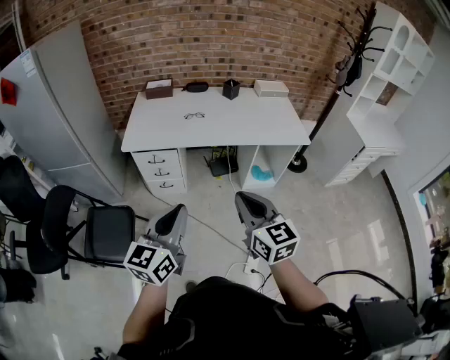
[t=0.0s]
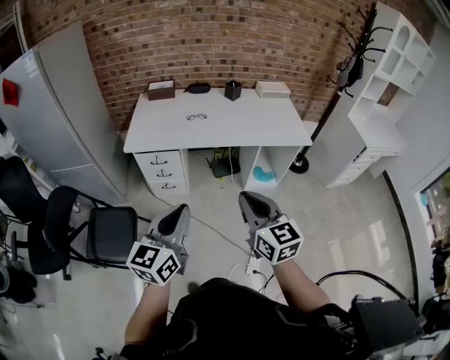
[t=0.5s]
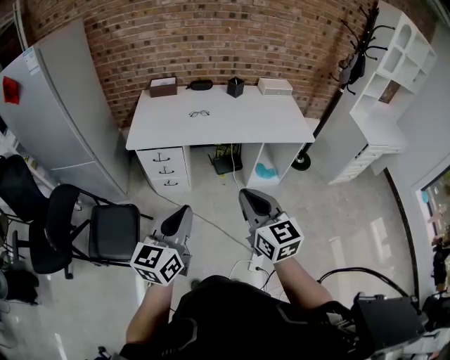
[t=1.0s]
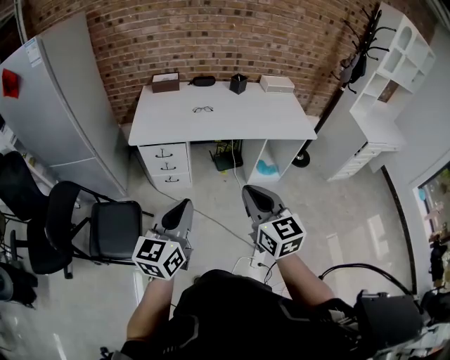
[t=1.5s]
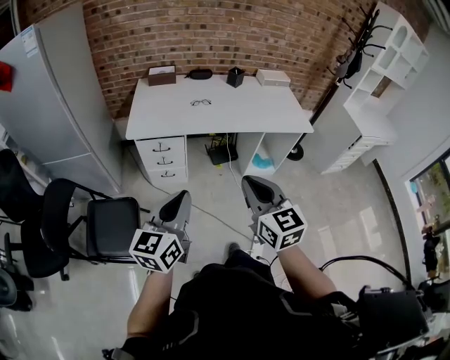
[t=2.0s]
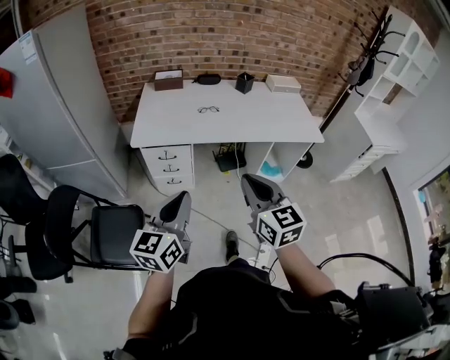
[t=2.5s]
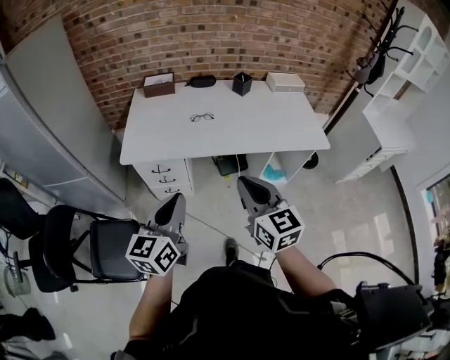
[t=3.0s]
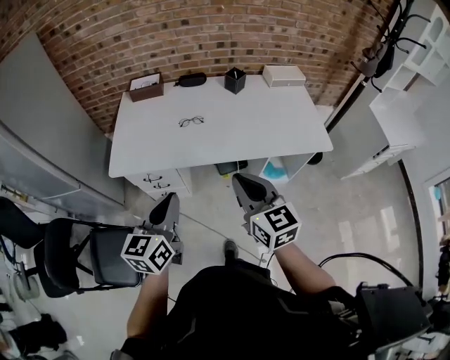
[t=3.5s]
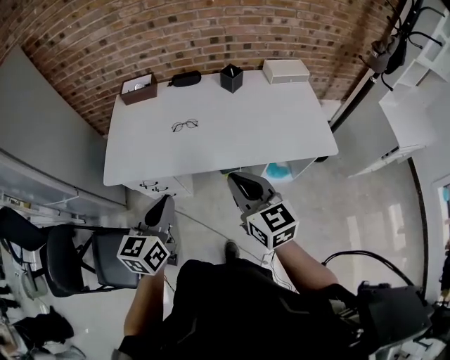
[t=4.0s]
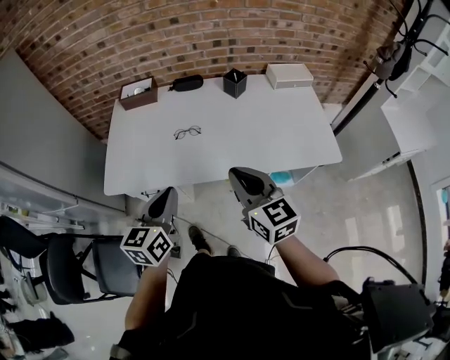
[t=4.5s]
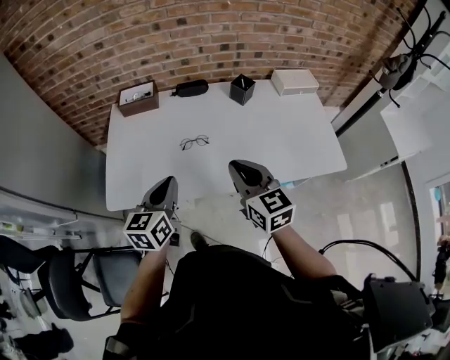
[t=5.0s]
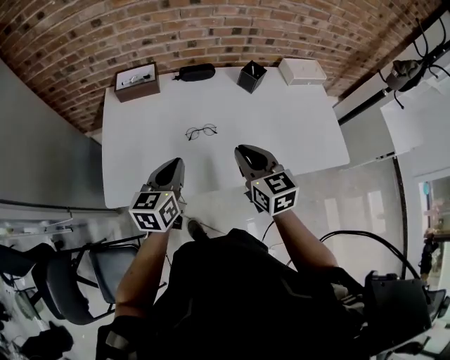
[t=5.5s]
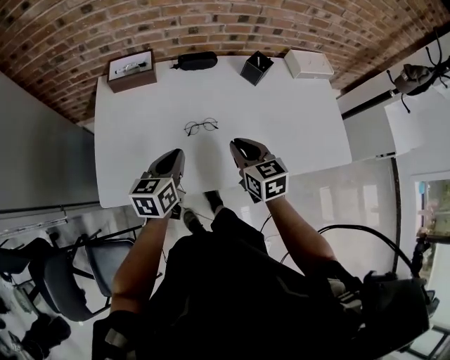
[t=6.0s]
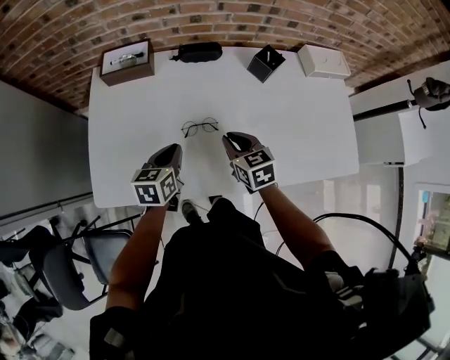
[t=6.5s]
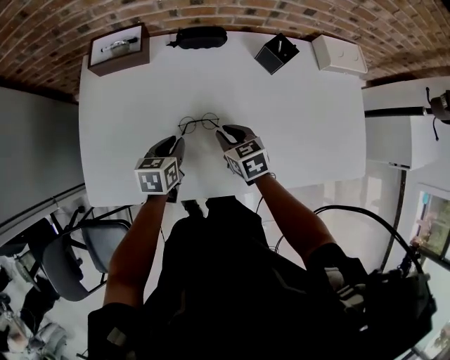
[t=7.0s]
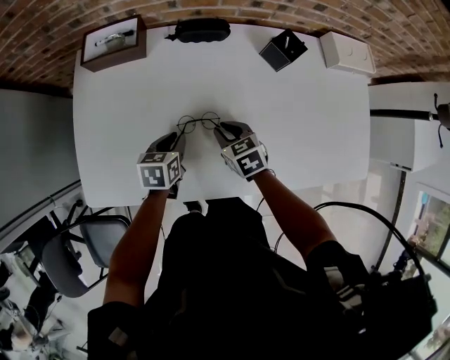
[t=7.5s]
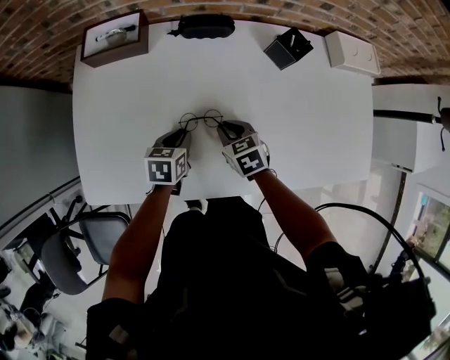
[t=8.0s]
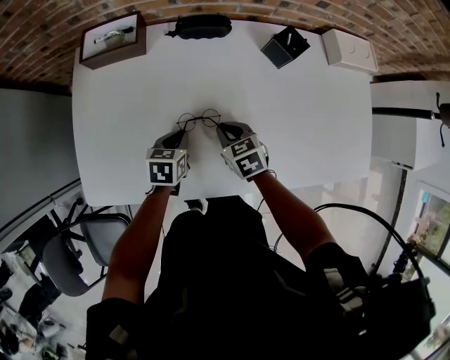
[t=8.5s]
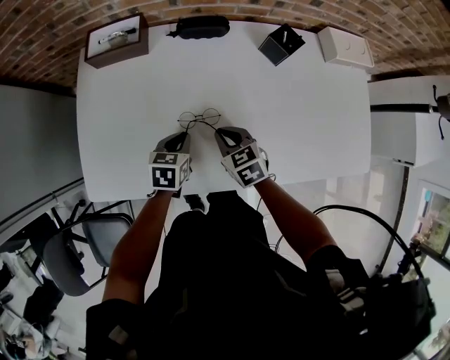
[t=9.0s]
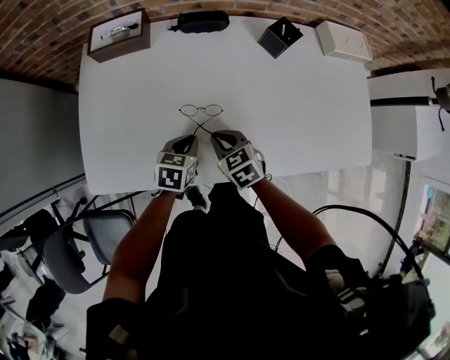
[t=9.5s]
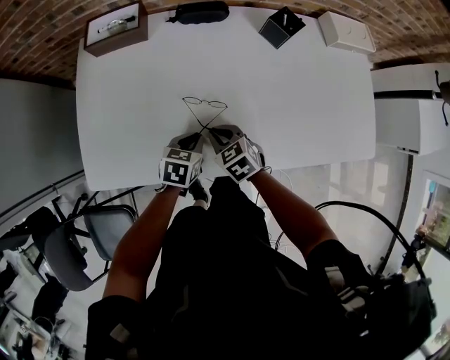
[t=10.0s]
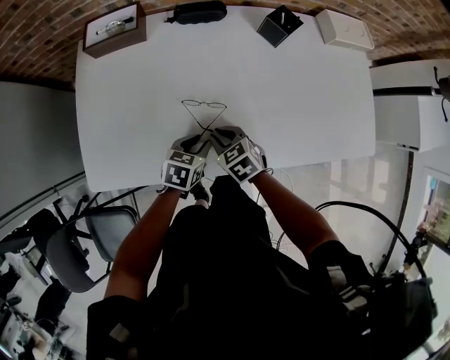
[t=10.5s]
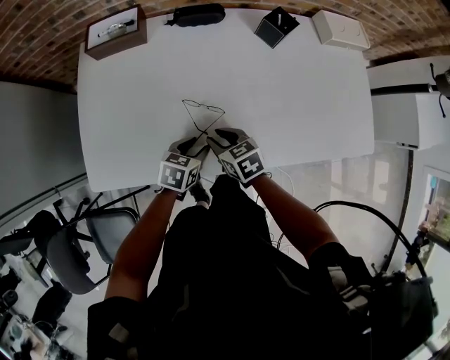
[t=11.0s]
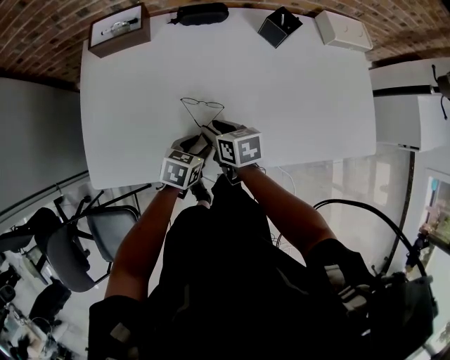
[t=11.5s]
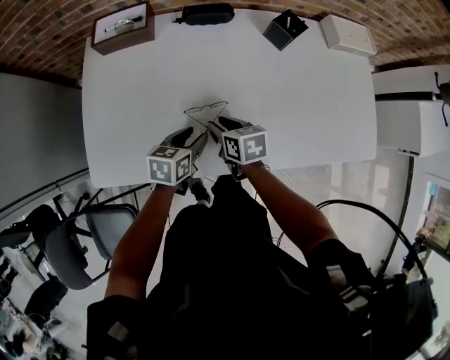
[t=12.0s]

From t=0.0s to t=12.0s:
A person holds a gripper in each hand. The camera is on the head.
From t=0.0s to t=2.0s: Both grippers travel together to the left, approximately 10 cm.
From t=2.0s to t=4.0s: The right gripper goes approximately 40 cm forward and to the right, while the left gripper is displaced forward by roughly 35 cm.
From t=4.0s to t=6.0s: The grippers both shift forward and downward by some 30 cm. The right gripper changes its angle by some 20 degrees.
From t=6.0s to t=8.0s: Both grippers move downward and forward, approximately 20 cm. The right gripper changes its angle by roughly 20 degrees, while the left gripper changes its angle by about 30 degrees.
From t=8.0s to t=10.0s: The grippers both shift backward by some 10 cm.
From t=10.0s to t=12.0s: The left gripper opens. The right gripper rotates roughly 30 degrees, and opens.

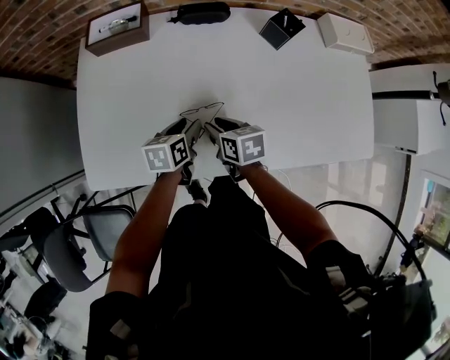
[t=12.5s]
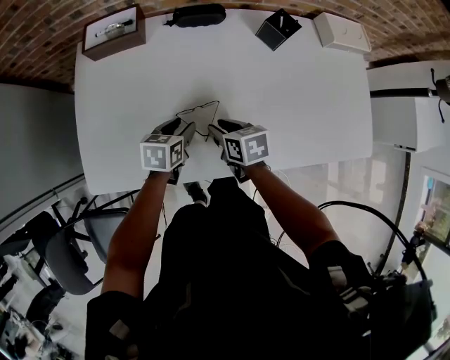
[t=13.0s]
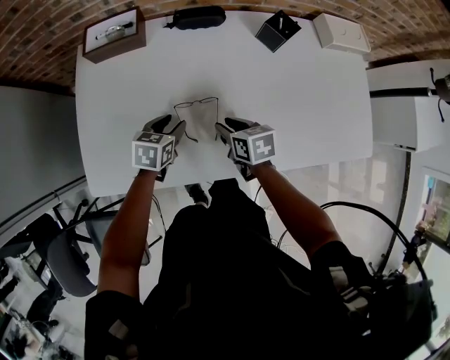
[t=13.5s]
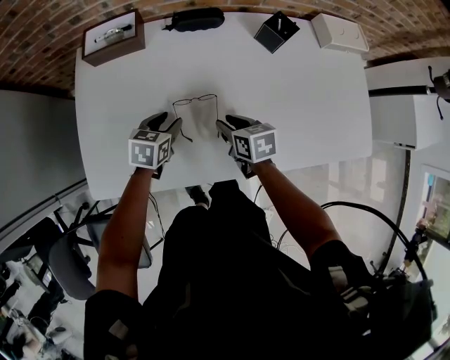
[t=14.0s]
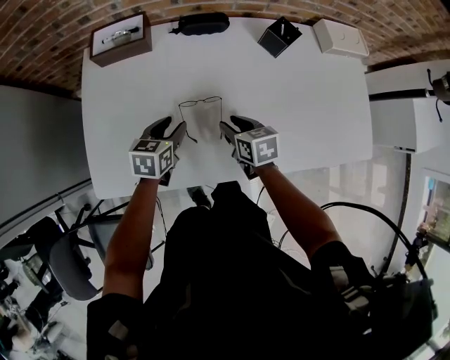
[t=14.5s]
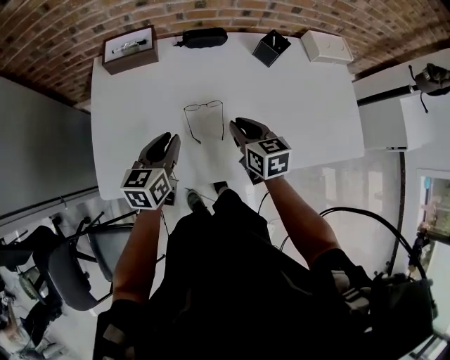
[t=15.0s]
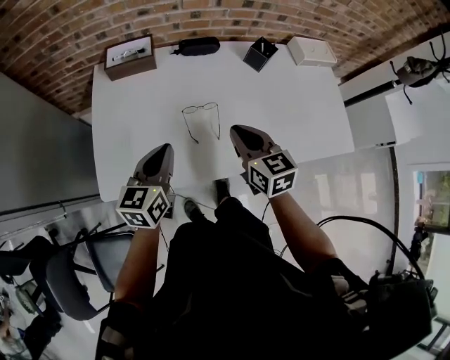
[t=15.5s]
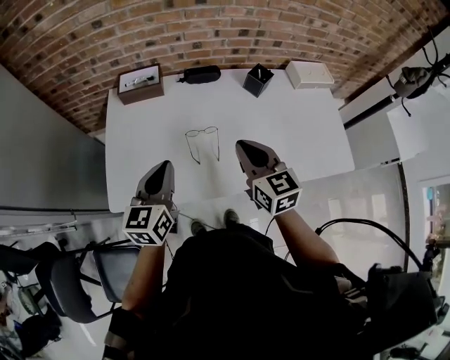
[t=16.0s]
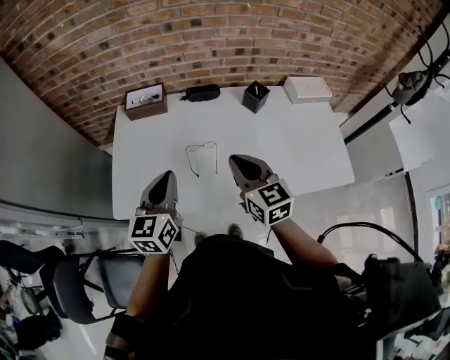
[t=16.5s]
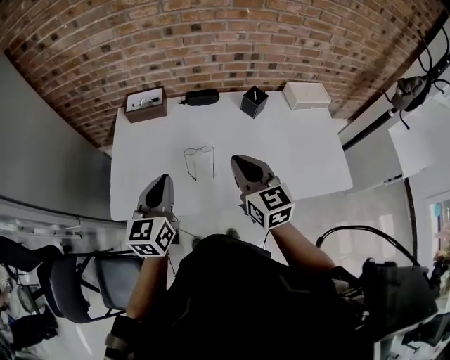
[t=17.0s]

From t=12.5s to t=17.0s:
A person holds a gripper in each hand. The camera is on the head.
From t=12.5s to t=14.5s: The left gripper changes place by about 5 cm.
From t=14.5s to t=17.0s: The left gripper is displaced upward and backward by roughly 30 cm, swivels approximately 40 degrees, and closes its fingers. The right gripper shifts roughly 30 cm upward, tilts its fingers some 30 degrees upward, and closes up.

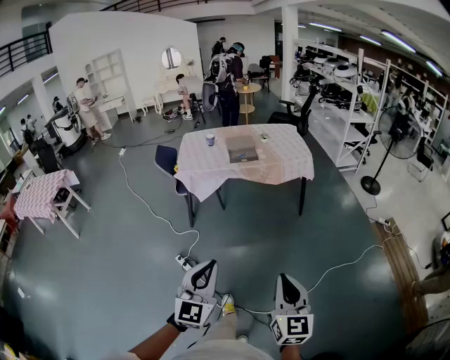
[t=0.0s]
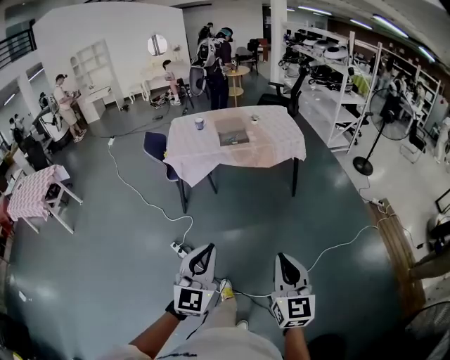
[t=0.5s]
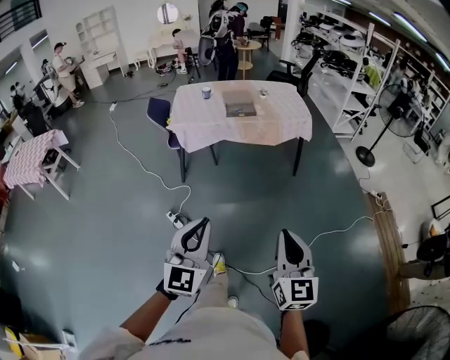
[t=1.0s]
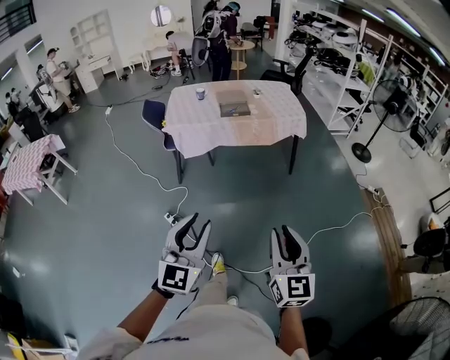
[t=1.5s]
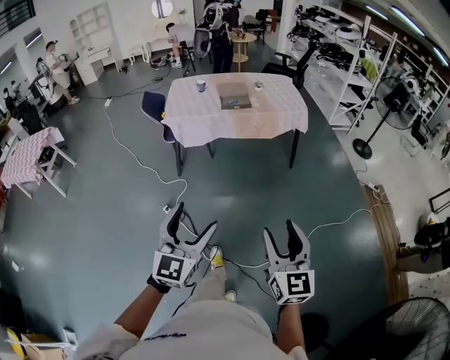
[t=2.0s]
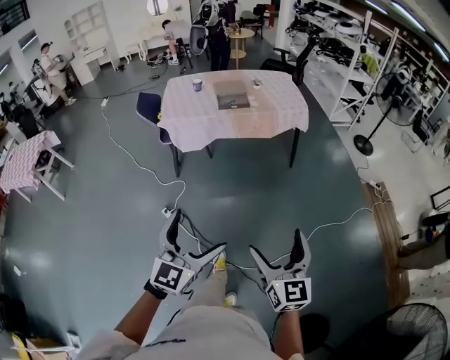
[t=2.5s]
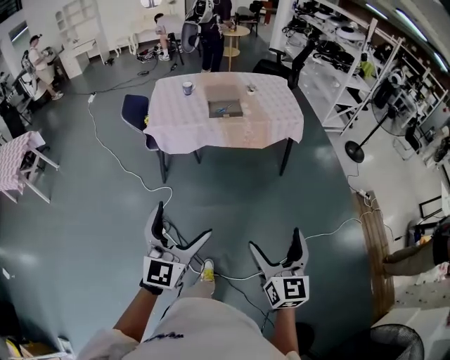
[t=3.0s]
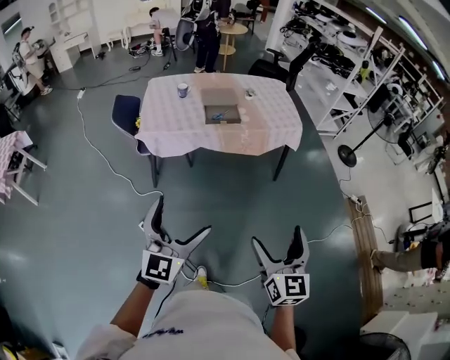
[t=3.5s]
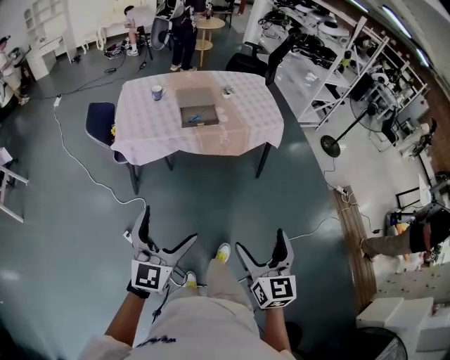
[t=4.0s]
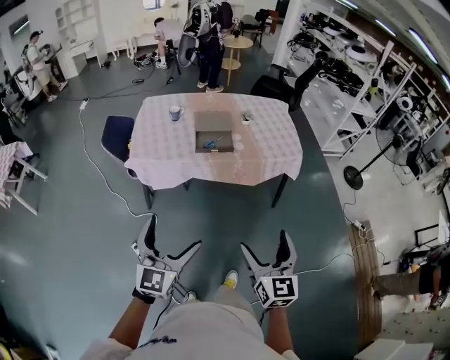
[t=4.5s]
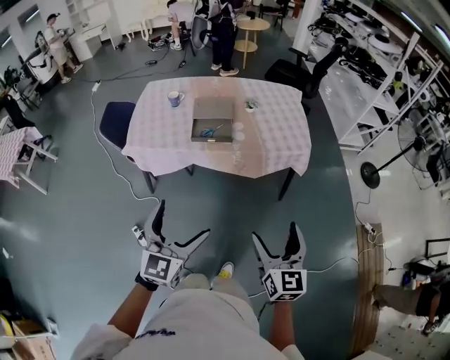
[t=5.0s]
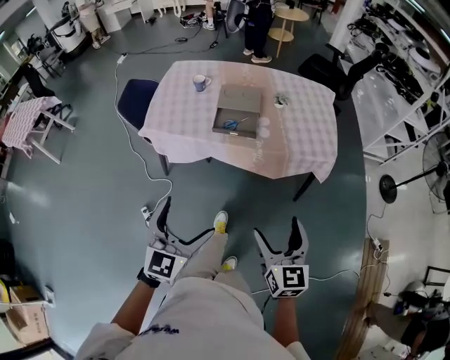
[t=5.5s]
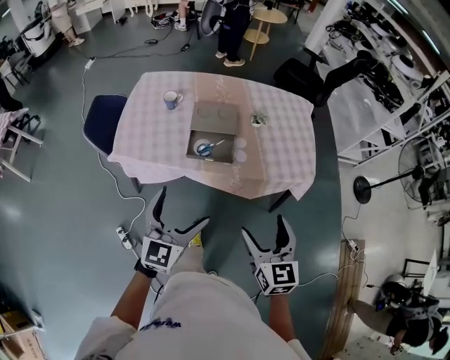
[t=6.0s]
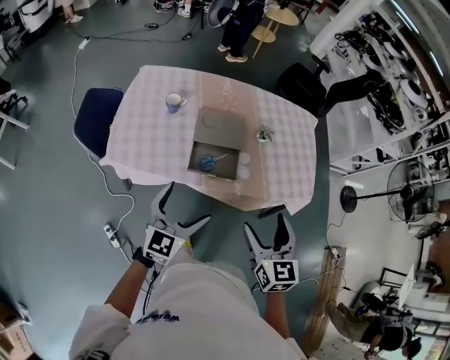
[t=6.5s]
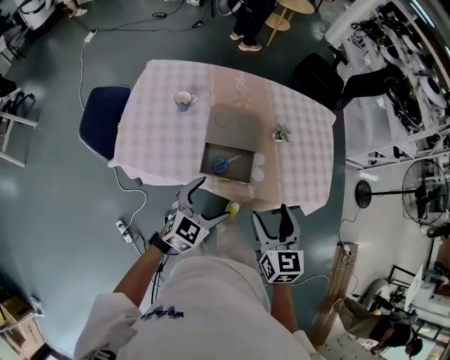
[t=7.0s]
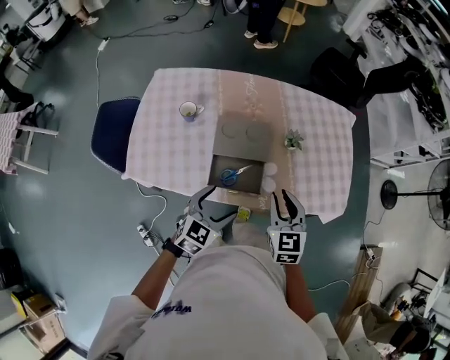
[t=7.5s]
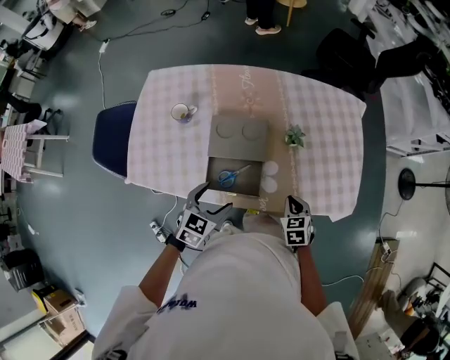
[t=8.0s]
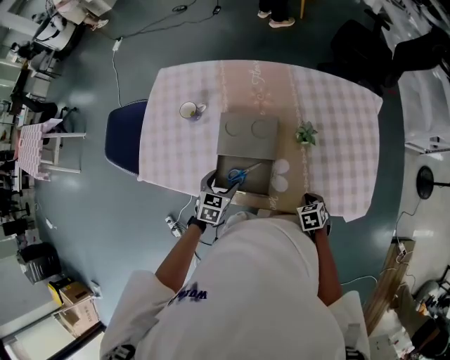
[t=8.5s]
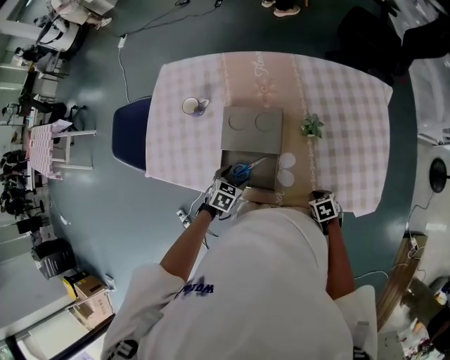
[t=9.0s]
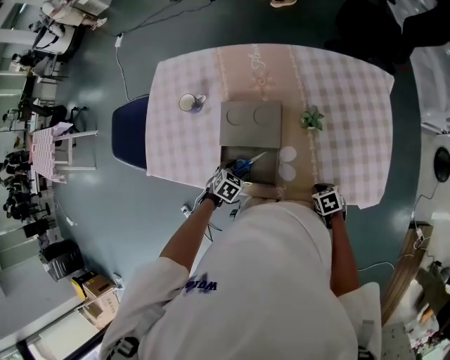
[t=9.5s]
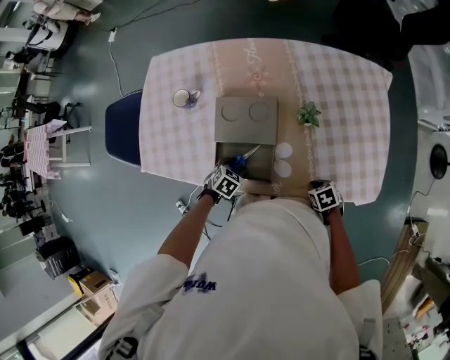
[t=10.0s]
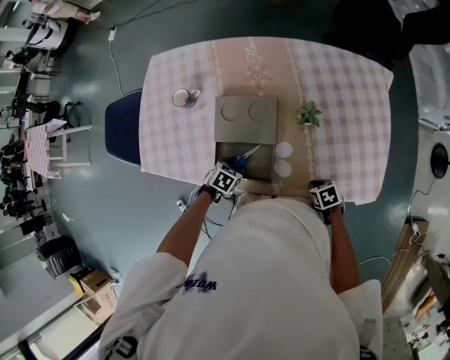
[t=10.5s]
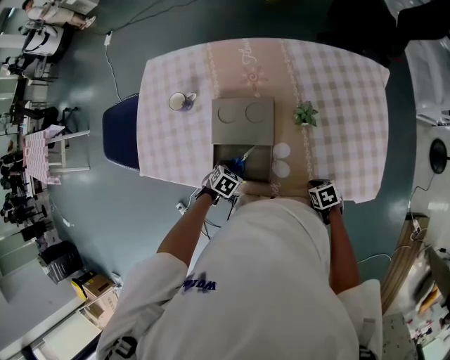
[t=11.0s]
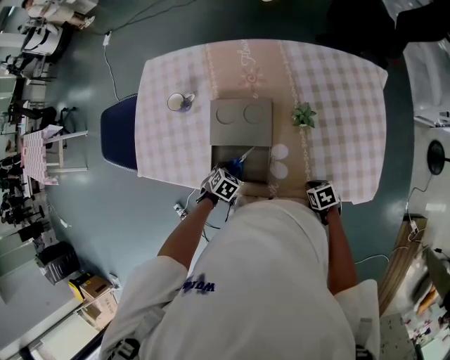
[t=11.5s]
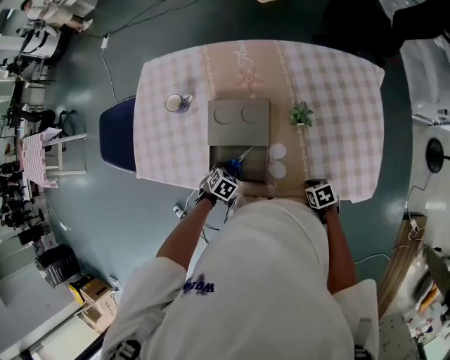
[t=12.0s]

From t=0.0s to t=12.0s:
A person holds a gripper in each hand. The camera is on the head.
From t=0.0s to t=2.0s: The left gripper opens up. Meanwhile the right gripper opens up.
From t=2.0s to t=4.0s: Both grippers travel together forward, approximately 30 cm. The left gripper opens up, while the right gripper opens.
From t=4.0s to t=6.0s: The two grippers go roughly 40 cm forward. The right gripper changes its angle by some 20 degrees.
From t=6.0s to t=8.0s: The two grippers go some 35 cm forward and downward. The left gripper tilts its fingers some 30 degrees downward. Meanwhile the right gripper tilts its fingers roughly 40 degrees downward, and closes its fingers.
From t=8.0s to t=10.0s: The right gripper moves downward and to the right, approximately 15 cm, and rotates some 30 degrees. The left gripper heads downward, covering roughly 20 cm, and turns by about 30 degrees.
From t=10.0s to t=12.0s: The grippers move only a little.
